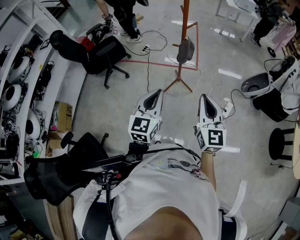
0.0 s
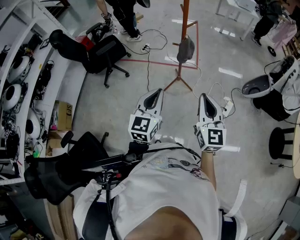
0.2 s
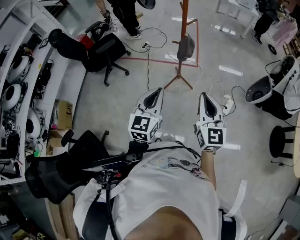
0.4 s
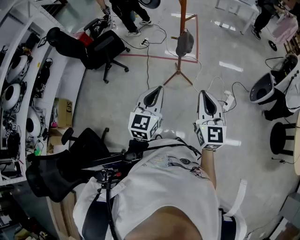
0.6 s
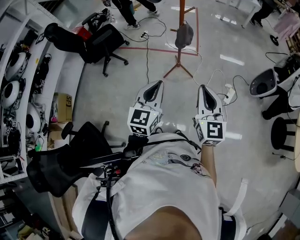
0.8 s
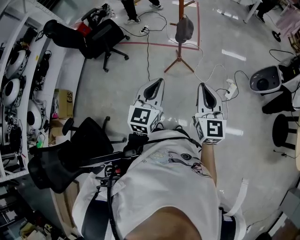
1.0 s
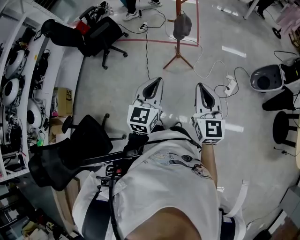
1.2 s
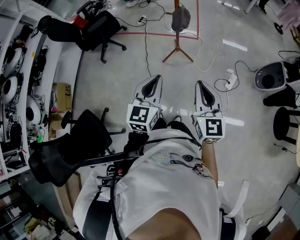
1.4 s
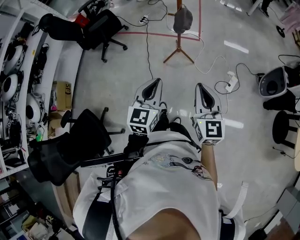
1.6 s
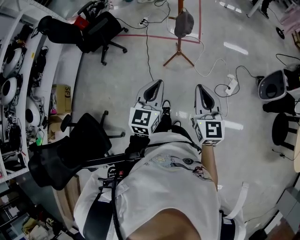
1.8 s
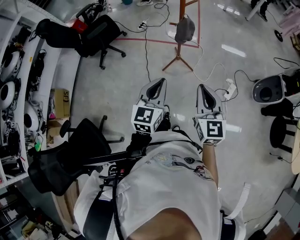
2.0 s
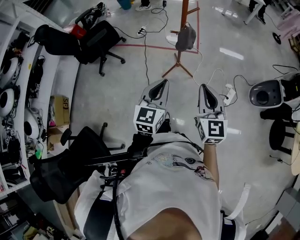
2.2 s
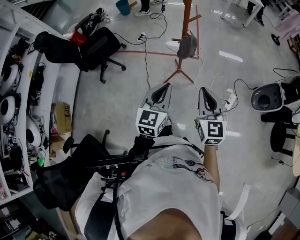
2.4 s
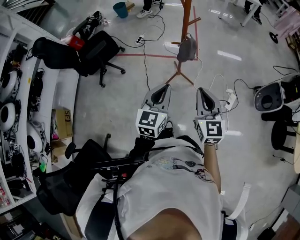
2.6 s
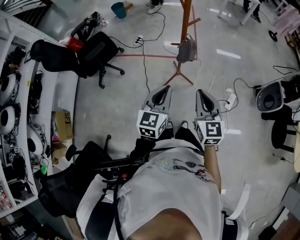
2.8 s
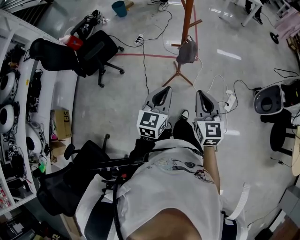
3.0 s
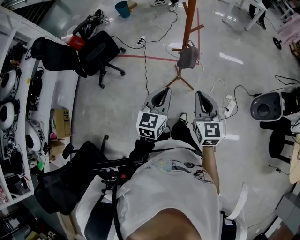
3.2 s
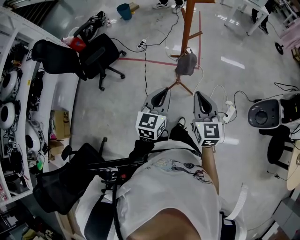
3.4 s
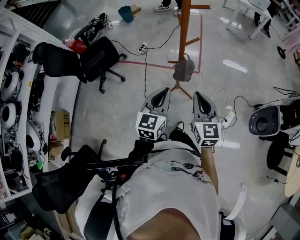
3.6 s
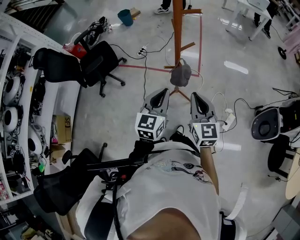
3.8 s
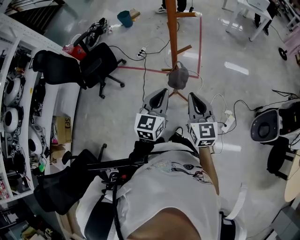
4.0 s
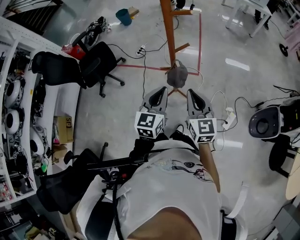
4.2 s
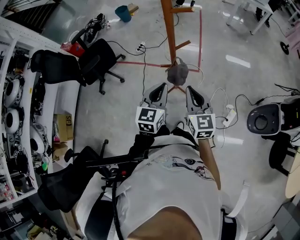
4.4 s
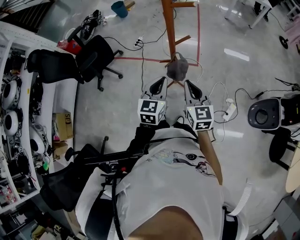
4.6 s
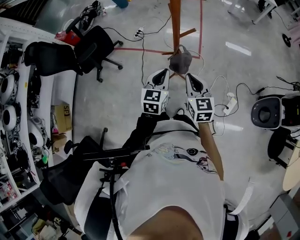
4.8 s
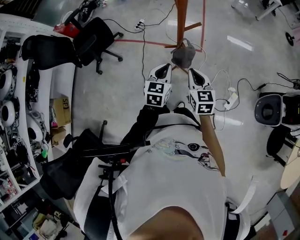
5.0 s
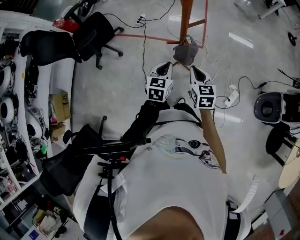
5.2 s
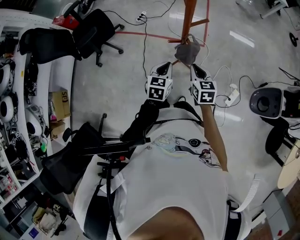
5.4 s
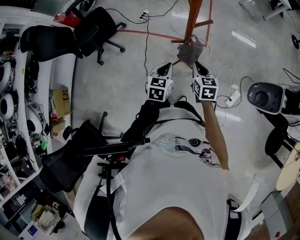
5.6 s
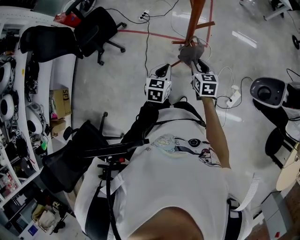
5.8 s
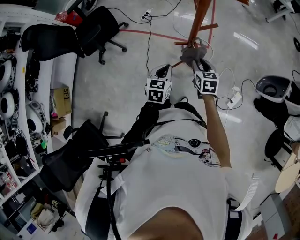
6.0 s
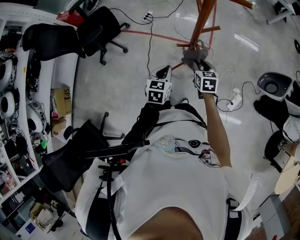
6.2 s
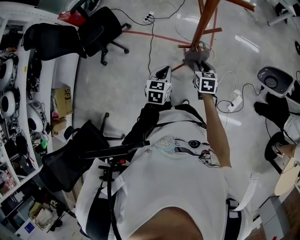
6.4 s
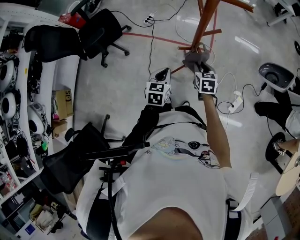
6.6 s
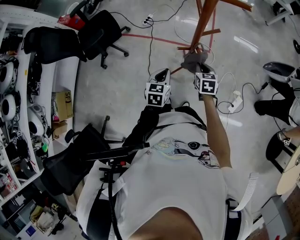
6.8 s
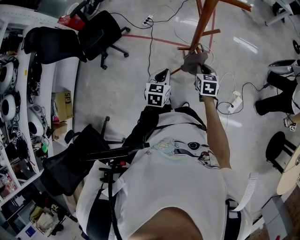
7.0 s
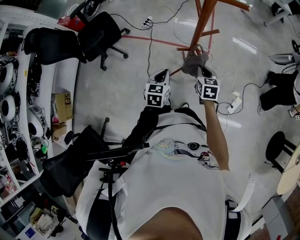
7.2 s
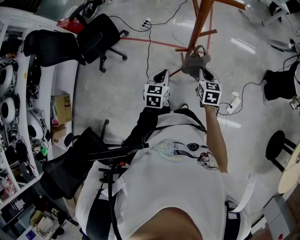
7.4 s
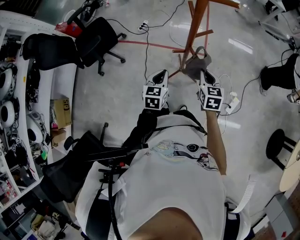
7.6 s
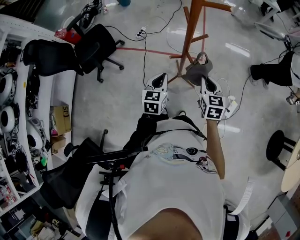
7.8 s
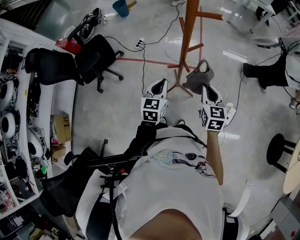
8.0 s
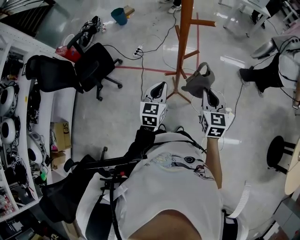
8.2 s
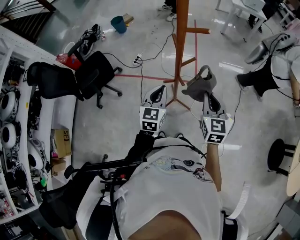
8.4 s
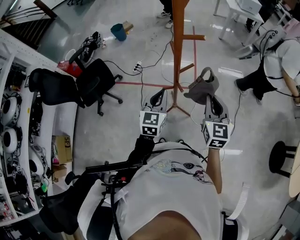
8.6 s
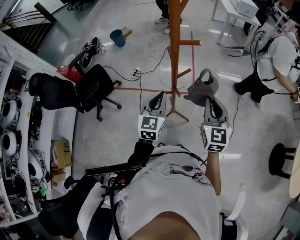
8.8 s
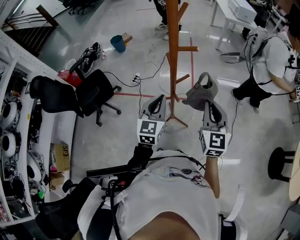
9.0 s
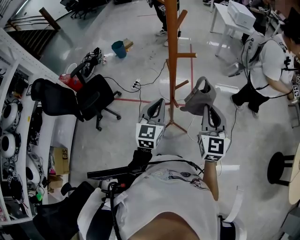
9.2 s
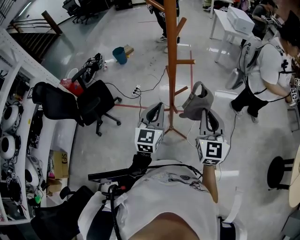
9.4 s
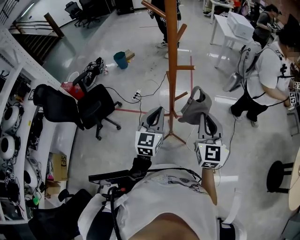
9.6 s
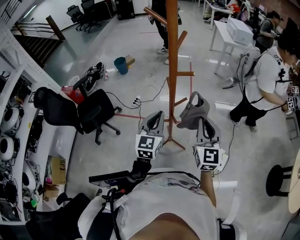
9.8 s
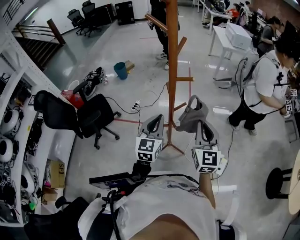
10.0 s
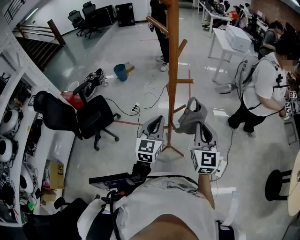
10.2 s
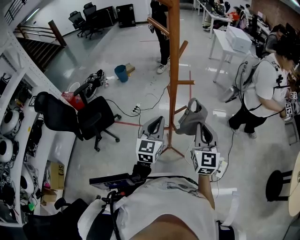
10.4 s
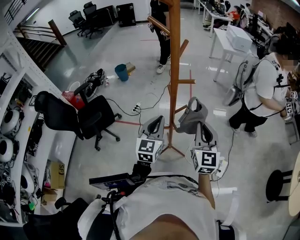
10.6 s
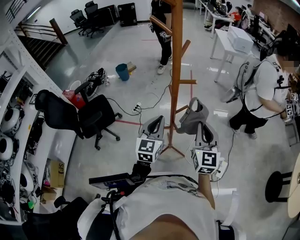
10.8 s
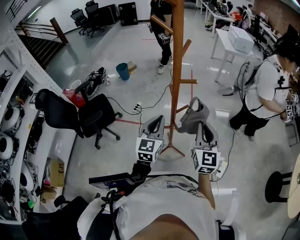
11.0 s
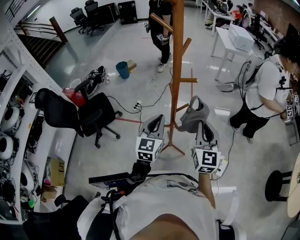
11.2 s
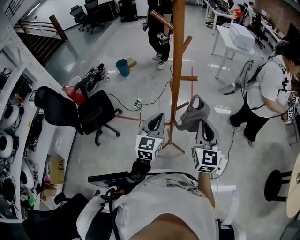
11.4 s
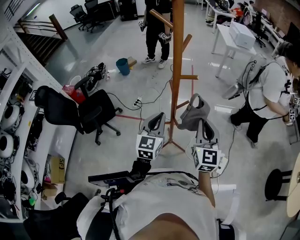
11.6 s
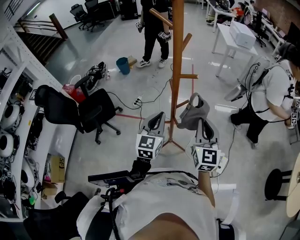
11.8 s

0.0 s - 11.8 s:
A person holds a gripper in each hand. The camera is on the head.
0.0 s - 1.4 s: The right gripper changes place by approximately 5 cm. The left gripper moves to the right, approximately 5 cm.
1.4 s - 3.0 s: The two grippers go some 20 cm forward.
3.0 s - 4.4 s: The right gripper moves forward, about 15 cm. The left gripper moves forward and to the right, about 20 cm.
4.4 s - 6.0 s: The left gripper moves downward and to the left, approximately 20 cm, and swivels roughly 20 degrees, while the right gripper shifts some 20 cm downward and forward, swivels some 30 degrees, and opens.
6.0 s - 7.4 s: The right gripper closes.
7.4 s - 8.8 s: The two grippers go about 20 cm upward. The left gripper changes its angle by some 30 degrees. The right gripper rotates some 30 degrees.
8.8 s - 10.4 s: The right gripper changes place by approximately 5 cm, while the left gripper travels upward by roughly 5 cm.
10.4 s - 11.8 s: The two grippers keep their place.

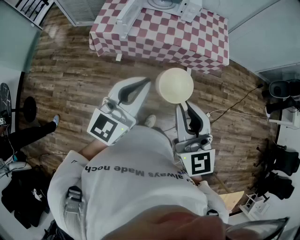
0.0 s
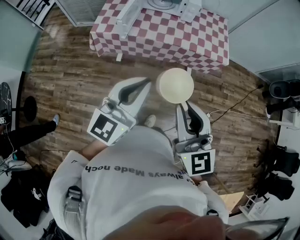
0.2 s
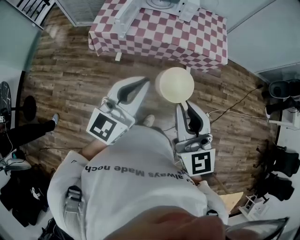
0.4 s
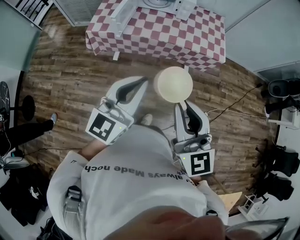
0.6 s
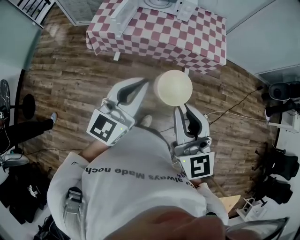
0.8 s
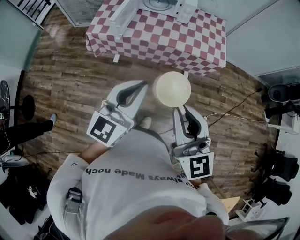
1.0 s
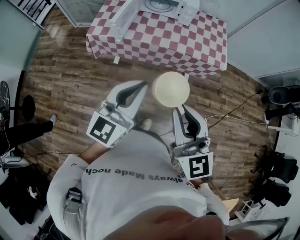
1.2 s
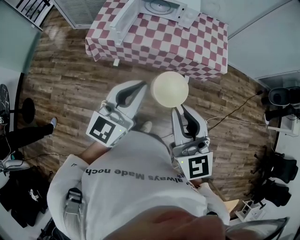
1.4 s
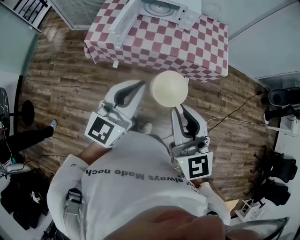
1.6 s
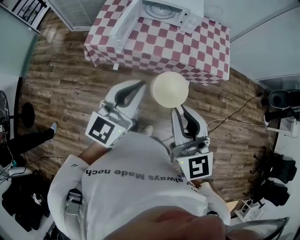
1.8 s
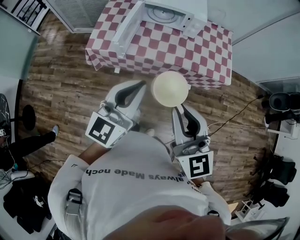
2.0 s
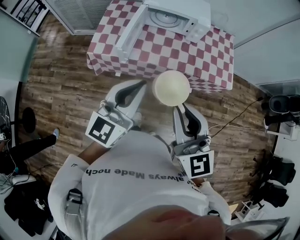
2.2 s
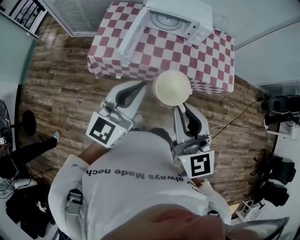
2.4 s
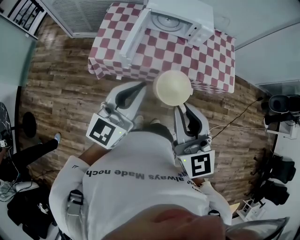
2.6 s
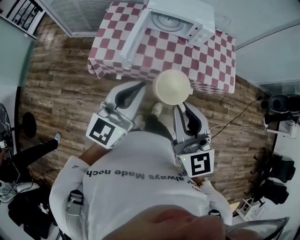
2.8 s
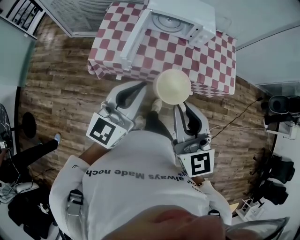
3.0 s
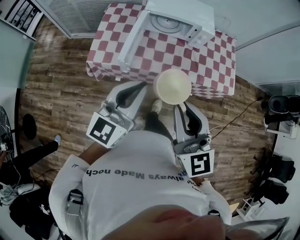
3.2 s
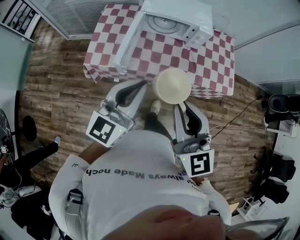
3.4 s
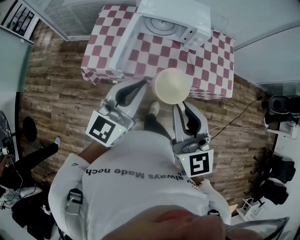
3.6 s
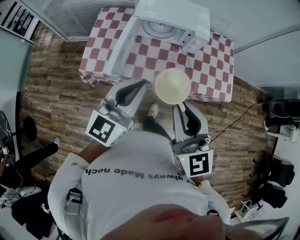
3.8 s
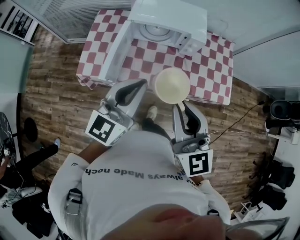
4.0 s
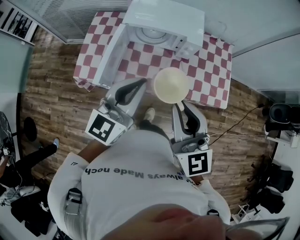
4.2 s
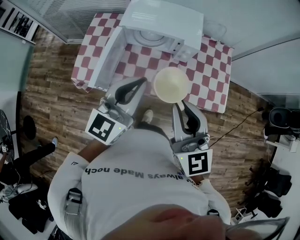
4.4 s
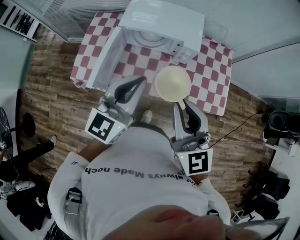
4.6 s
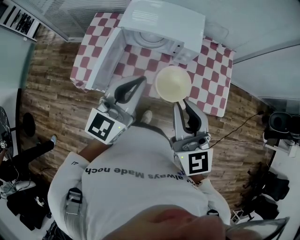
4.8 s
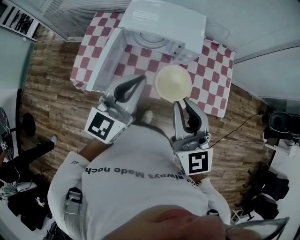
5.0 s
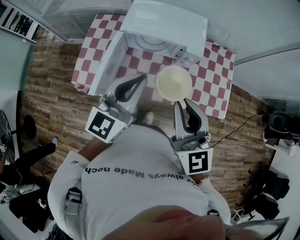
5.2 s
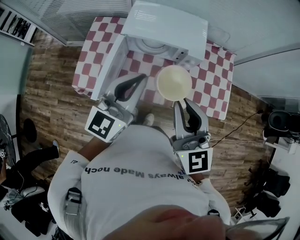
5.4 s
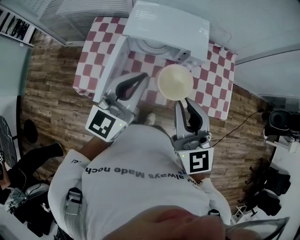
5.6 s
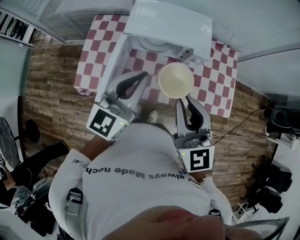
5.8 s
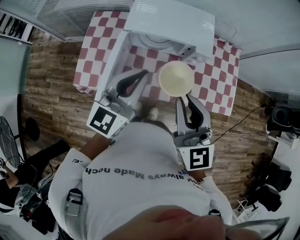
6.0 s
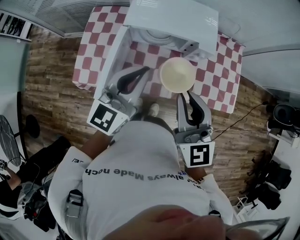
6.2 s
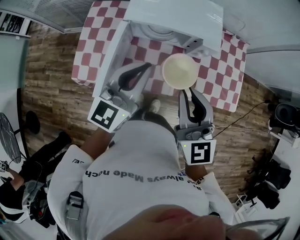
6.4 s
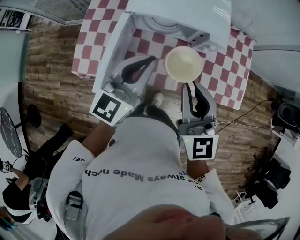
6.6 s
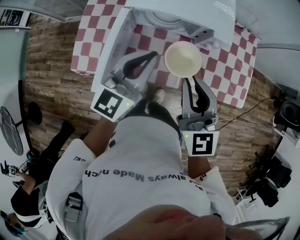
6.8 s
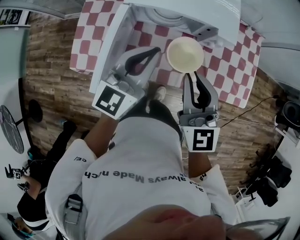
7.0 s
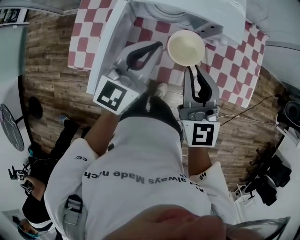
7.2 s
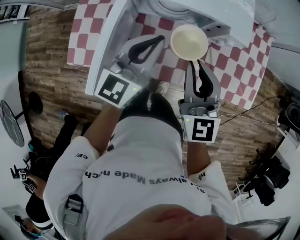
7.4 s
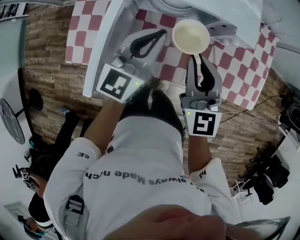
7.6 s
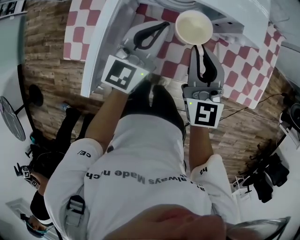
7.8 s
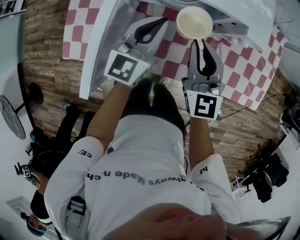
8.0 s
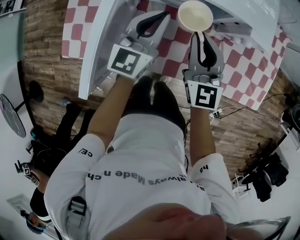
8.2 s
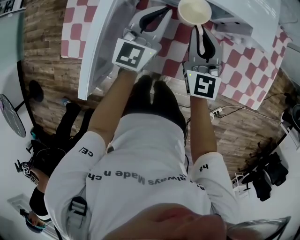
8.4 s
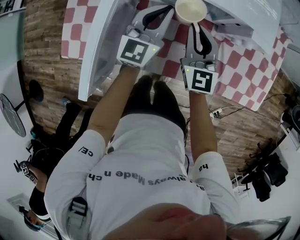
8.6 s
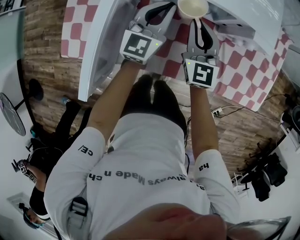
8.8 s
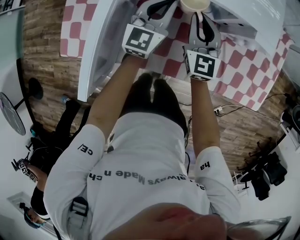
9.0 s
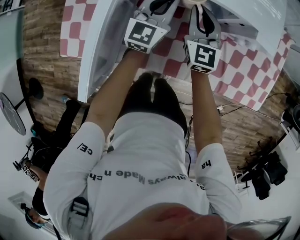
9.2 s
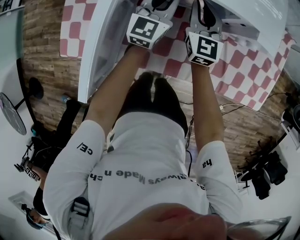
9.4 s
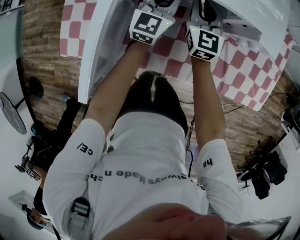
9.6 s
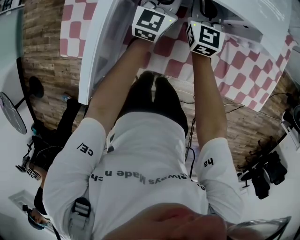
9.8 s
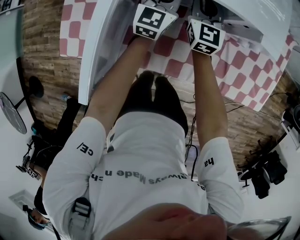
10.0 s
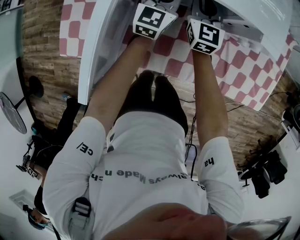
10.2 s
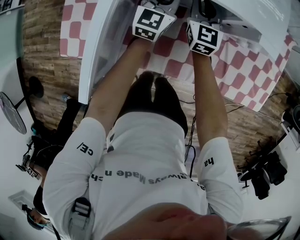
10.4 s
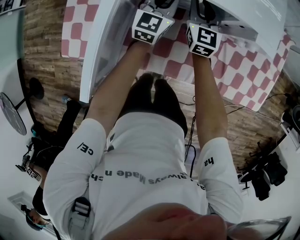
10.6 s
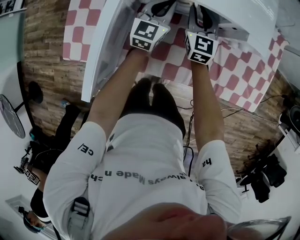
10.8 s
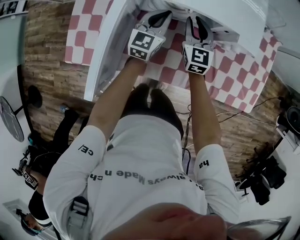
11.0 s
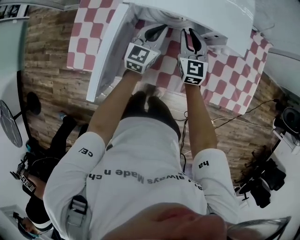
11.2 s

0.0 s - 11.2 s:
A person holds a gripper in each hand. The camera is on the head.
0.0 s - 1.6 s: Both grippers travel together forward, some 10 cm.
1.6 s - 3.2 s: The grippers both shift forward and to the left by roughly 25 cm.
3.2 s - 4.8 s: The two grippers go roughly 25 cm forward and to the right.
4.8 s - 6.4 s: Both grippers travel together forward, to the left and downward, about 15 cm.
6.4 s - 8.0 s: The grippers both shift downward and forward by some 25 cm.
8.0 s - 9.6 s: Both grippers move forward and downward, roughly 15 cm.
9.6 s - 11.2 s: The left gripper moves backward, about 5 cm, while the right gripper goes roughly 10 cm backward and upward.

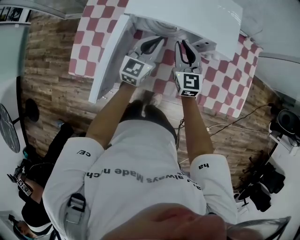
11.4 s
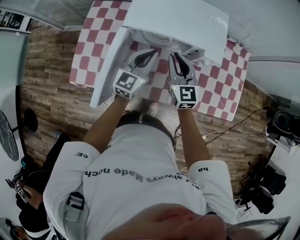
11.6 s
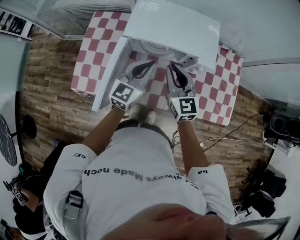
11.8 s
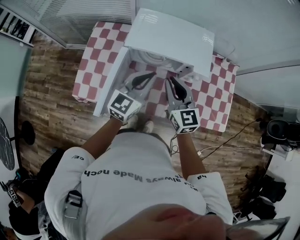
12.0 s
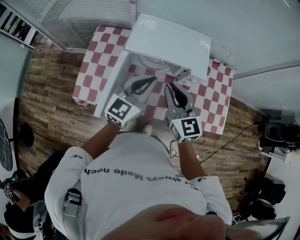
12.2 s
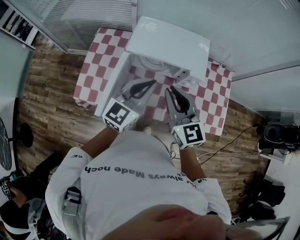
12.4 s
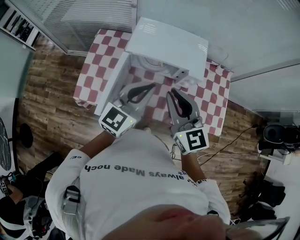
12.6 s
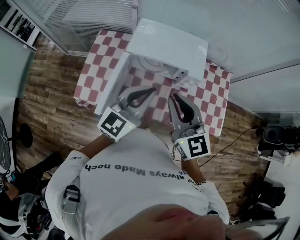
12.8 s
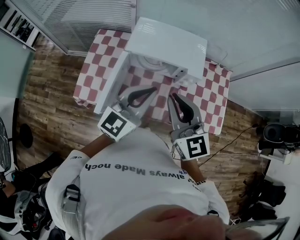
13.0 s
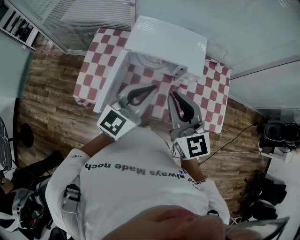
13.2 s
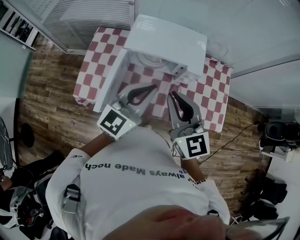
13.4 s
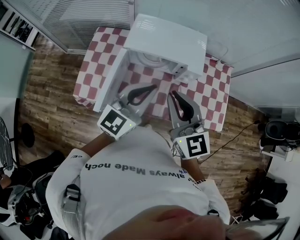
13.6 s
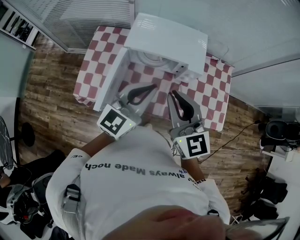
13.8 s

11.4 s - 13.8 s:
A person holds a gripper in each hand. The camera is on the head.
11.4 s - 12.6 s: The two grippers go some 30 cm upward and backward.
12.6 s - 13.8 s: The grippers make only small movements.
